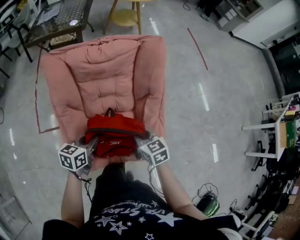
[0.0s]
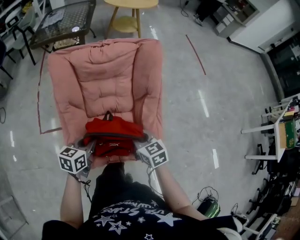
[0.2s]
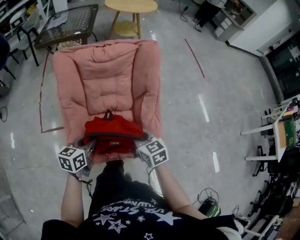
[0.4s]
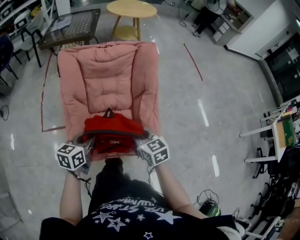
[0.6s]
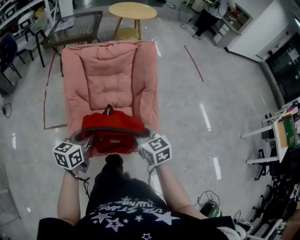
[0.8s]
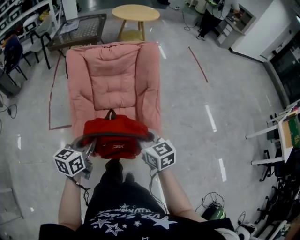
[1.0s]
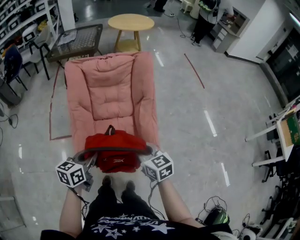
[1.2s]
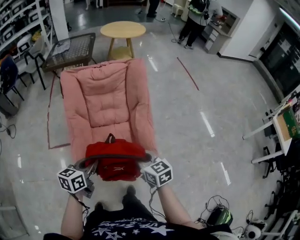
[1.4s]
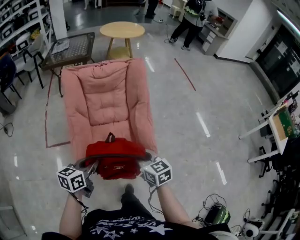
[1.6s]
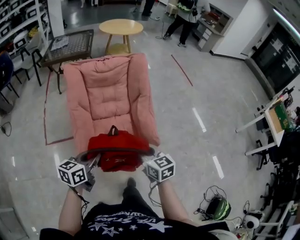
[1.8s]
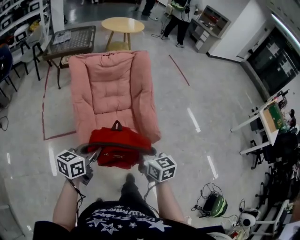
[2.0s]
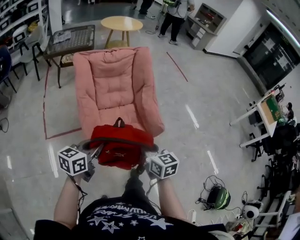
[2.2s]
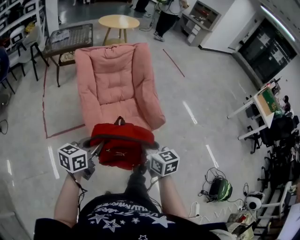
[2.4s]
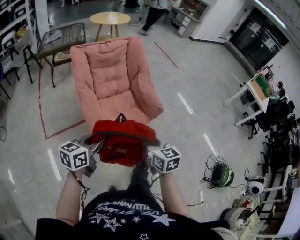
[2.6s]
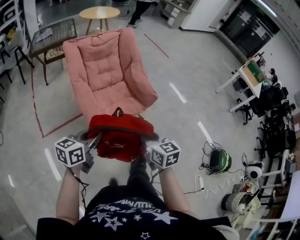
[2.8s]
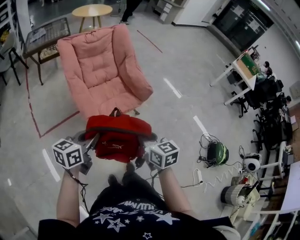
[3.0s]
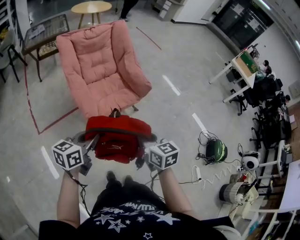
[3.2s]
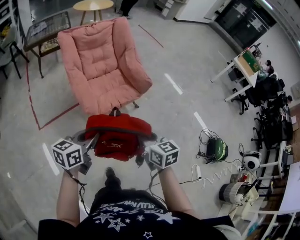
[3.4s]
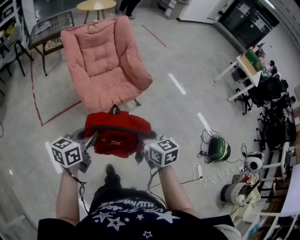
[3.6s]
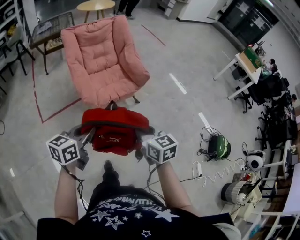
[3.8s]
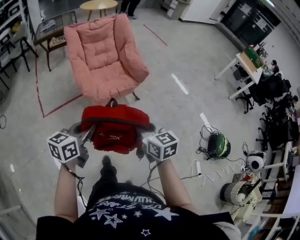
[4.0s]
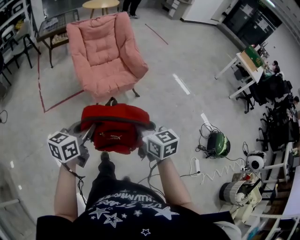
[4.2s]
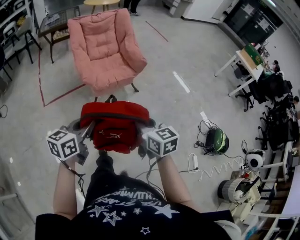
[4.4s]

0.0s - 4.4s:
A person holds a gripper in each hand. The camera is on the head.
0.0s - 1.4s: The grippers both shift backward and upward by approximately 30 cm.
1.4s - 3.0s: The right gripper ends up about 40 cm from where it was, and changes its angle by about 30 degrees; the left gripper shifts by some 35 cm, and turns by some 30 degrees.
3.0s - 4.4s: The two grippers go approximately 25 cm backward and to the right.

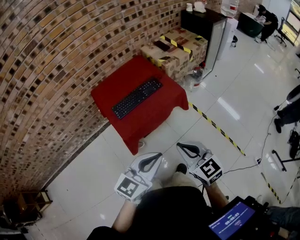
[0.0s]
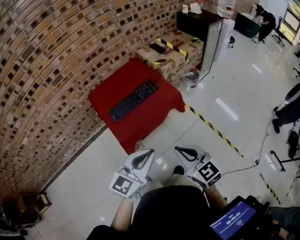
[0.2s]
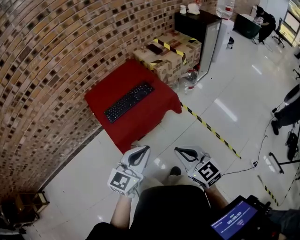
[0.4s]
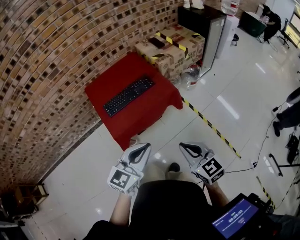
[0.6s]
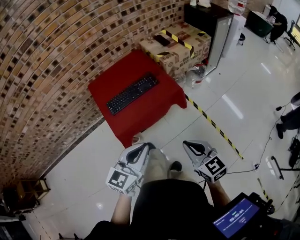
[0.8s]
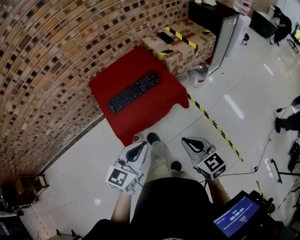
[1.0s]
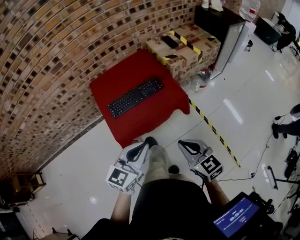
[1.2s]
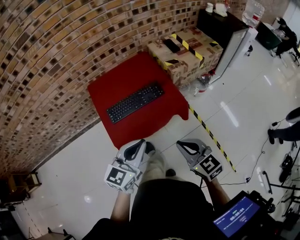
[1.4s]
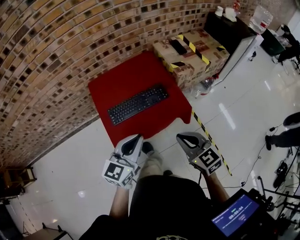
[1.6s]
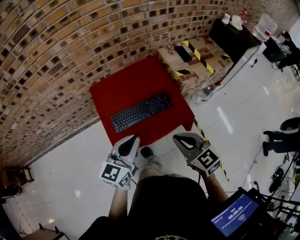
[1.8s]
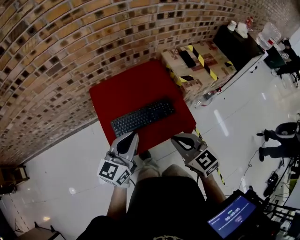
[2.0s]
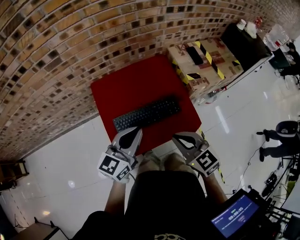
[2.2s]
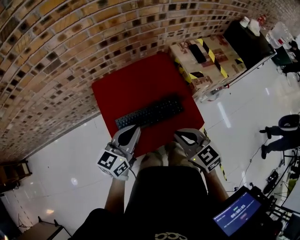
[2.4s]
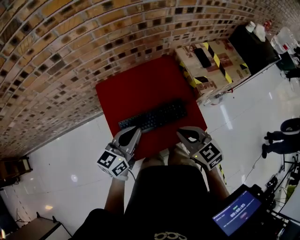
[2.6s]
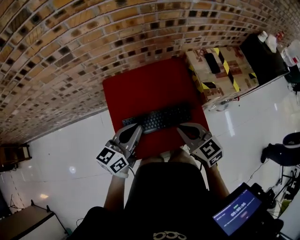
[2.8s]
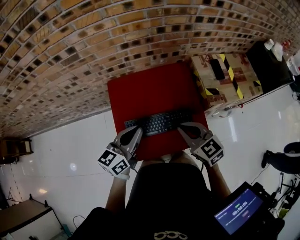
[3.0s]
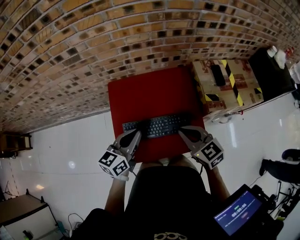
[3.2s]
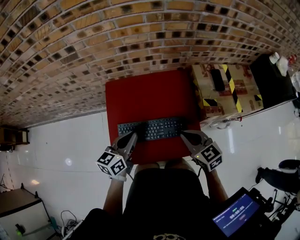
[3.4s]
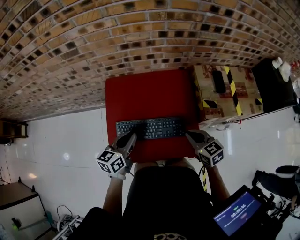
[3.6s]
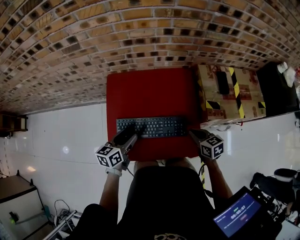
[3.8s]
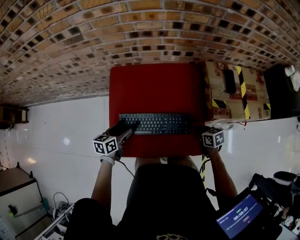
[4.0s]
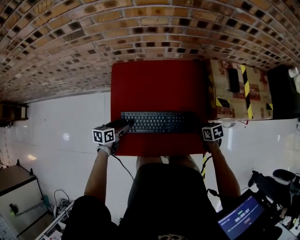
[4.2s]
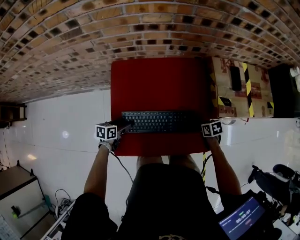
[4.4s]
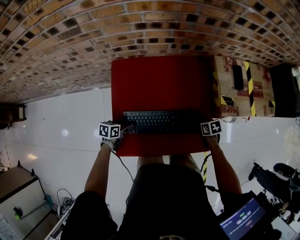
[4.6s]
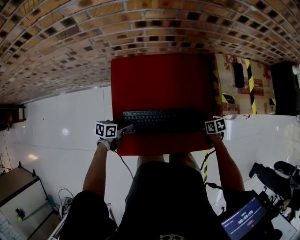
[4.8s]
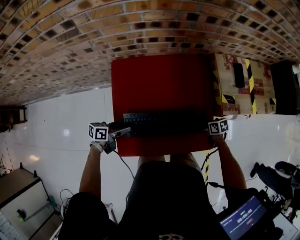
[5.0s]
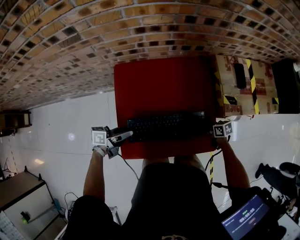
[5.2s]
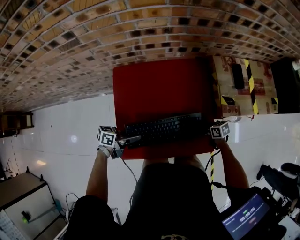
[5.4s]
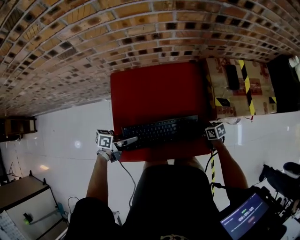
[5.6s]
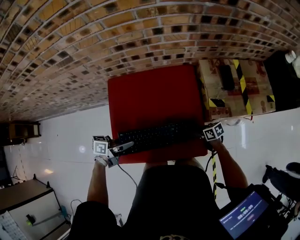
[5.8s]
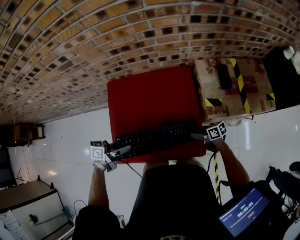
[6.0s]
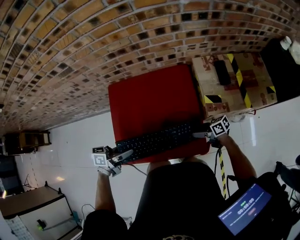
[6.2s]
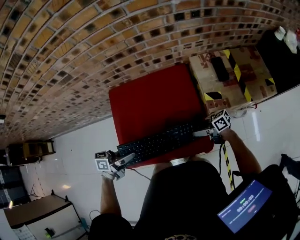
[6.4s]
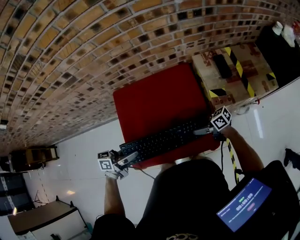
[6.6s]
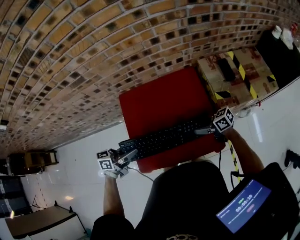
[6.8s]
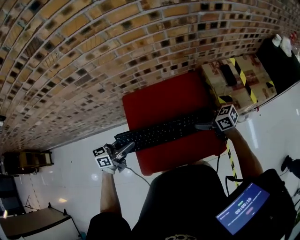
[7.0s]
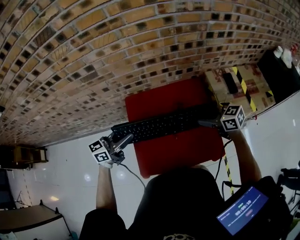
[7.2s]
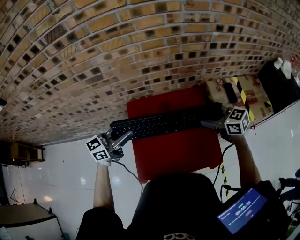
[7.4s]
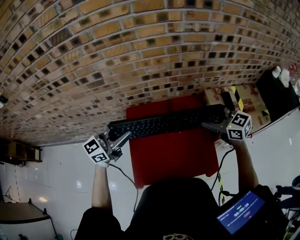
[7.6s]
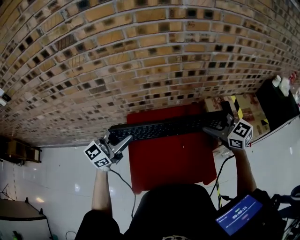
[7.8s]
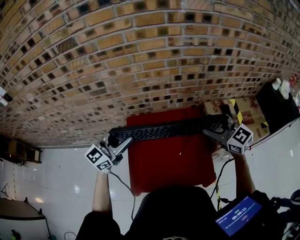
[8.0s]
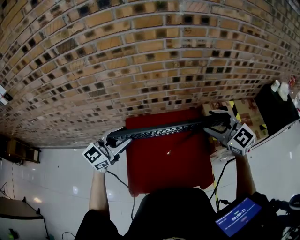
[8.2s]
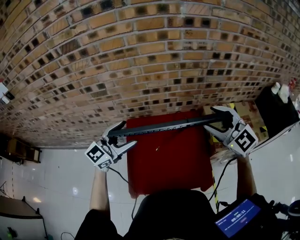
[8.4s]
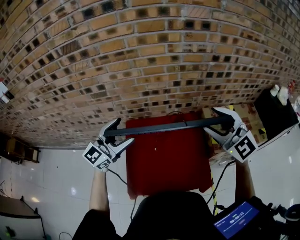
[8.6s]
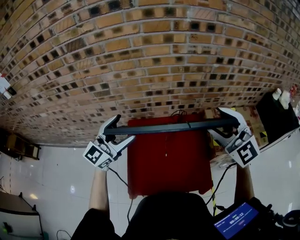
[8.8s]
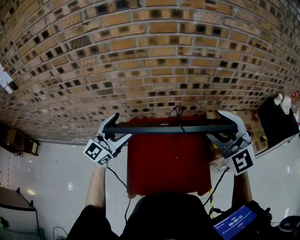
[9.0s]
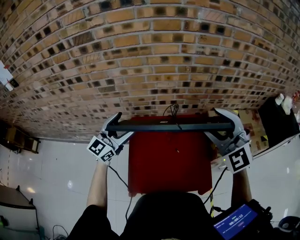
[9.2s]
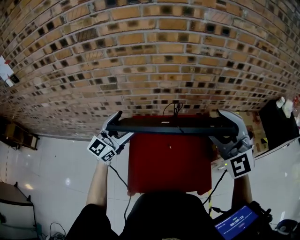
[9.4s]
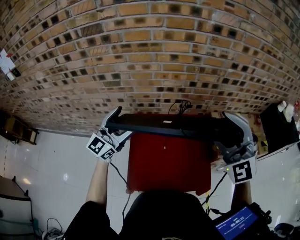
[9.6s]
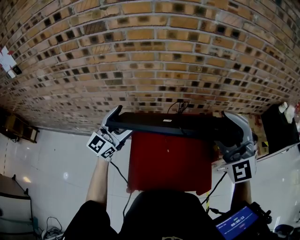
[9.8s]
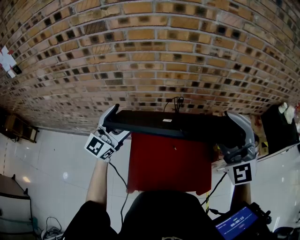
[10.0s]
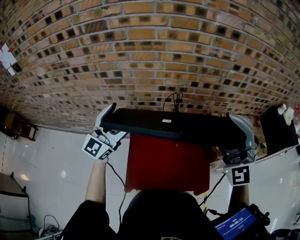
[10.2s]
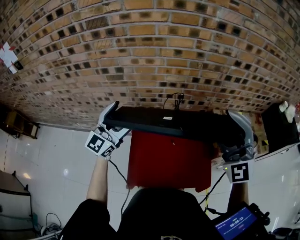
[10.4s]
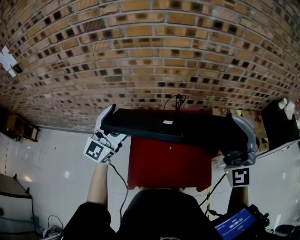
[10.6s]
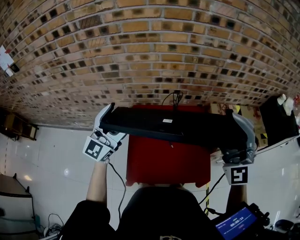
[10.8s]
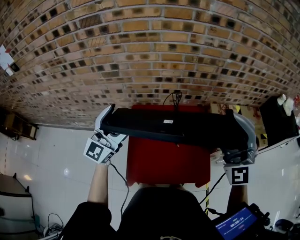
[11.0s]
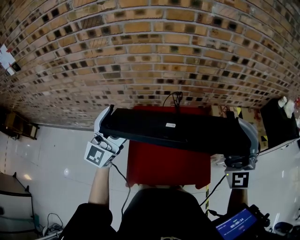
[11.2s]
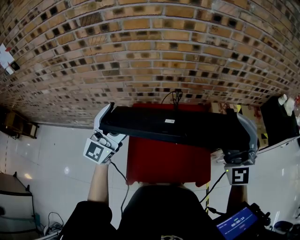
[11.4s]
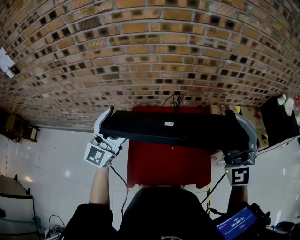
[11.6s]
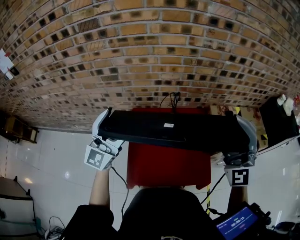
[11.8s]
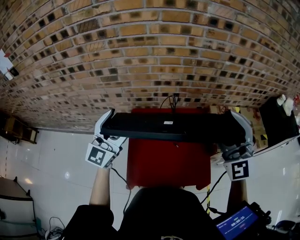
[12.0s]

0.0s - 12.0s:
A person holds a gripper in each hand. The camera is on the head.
0.0s - 1.6s: Both grippers move forward, some 20 cm. The left gripper changes its angle by about 20 degrees.
1.6s - 3.0s: The right gripper is displaced forward by about 25 cm, while the left gripper is displaced forward and to the left by roughly 25 cm, and rotates about 20 degrees.
3.0s - 4.4s: The left gripper travels downward by roughly 35 cm, tilts its fingers approximately 40 degrees downward, and opens its fingers. Meanwhile the right gripper goes about 35 cm downward and to the right, tilts its fingers roughly 40 degrees downward, and opens up.
4.4s - 6.0s: The left gripper goes approximately 20 cm upward, tilts its fingers some 30 degrees upward, and closes its fingers. The right gripper points its fingers roughly 30 degrees further upward.
6.0s - 7.6s: The right gripper travels upward by about 35 cm, and rolls counterclockwise, seen from behind, by roughly 50 degrees. The left gripper is displaced upward by about 20 cm, and twists some 60 degrees clockwise, seen from behind.
7.6s - 9.0s: The left gripper shifts roughly 10 cm upward, turns by some 30 degrees, and opens, while the right gripper travels upward by approximately 20 cm, and twists roughly 50 degrees counterclockwise, seen from behind.
9.0s - 10.4s: The right gripper changes place by roughly 5 cm.
10.4s - 12.0s: The grippers make only small movements.

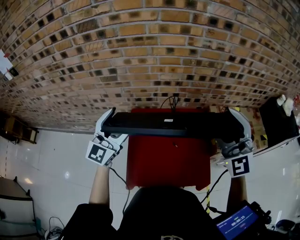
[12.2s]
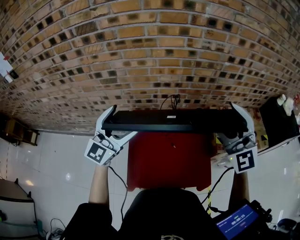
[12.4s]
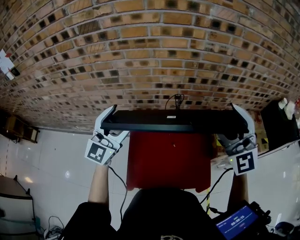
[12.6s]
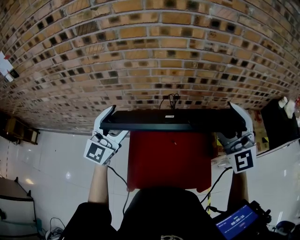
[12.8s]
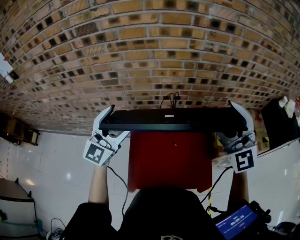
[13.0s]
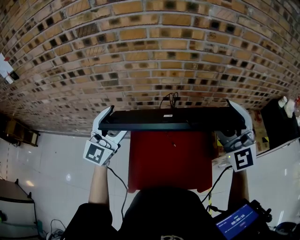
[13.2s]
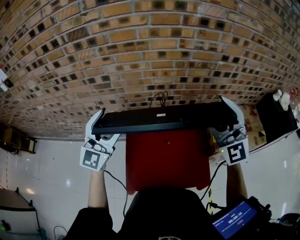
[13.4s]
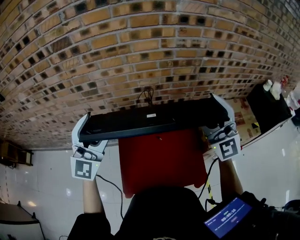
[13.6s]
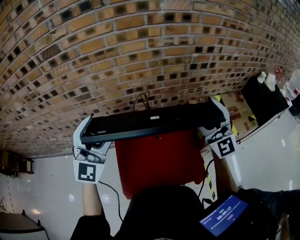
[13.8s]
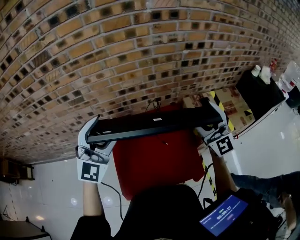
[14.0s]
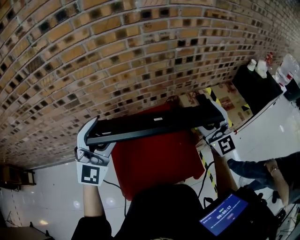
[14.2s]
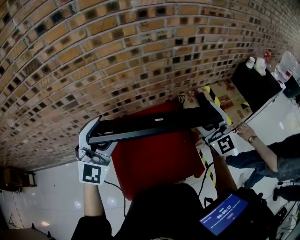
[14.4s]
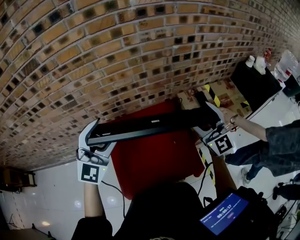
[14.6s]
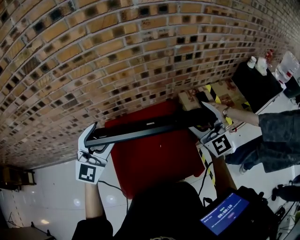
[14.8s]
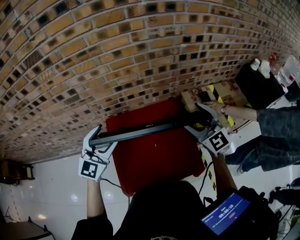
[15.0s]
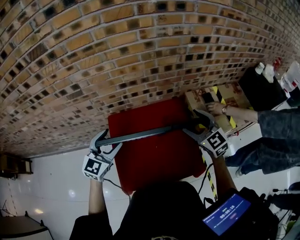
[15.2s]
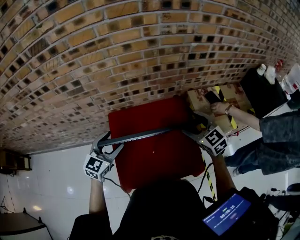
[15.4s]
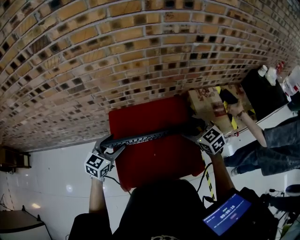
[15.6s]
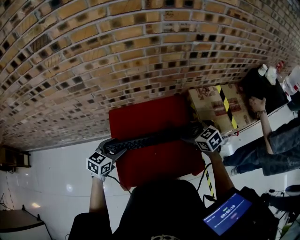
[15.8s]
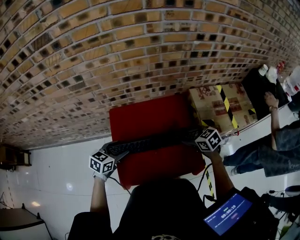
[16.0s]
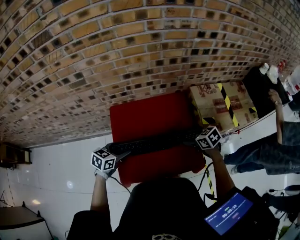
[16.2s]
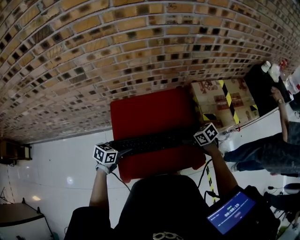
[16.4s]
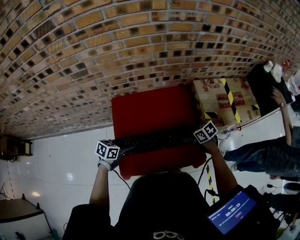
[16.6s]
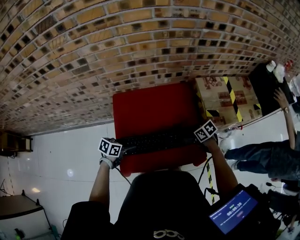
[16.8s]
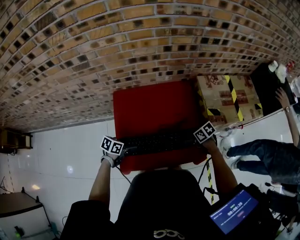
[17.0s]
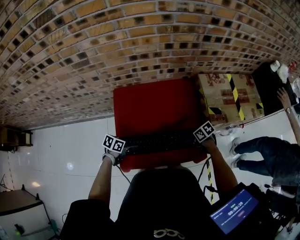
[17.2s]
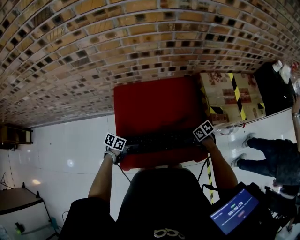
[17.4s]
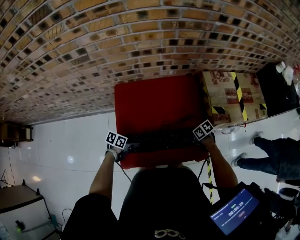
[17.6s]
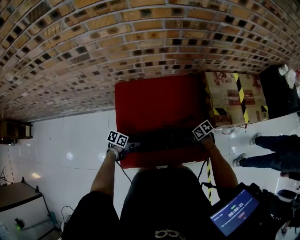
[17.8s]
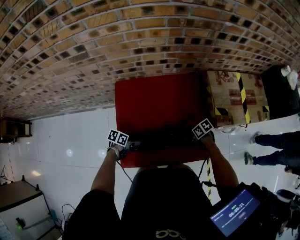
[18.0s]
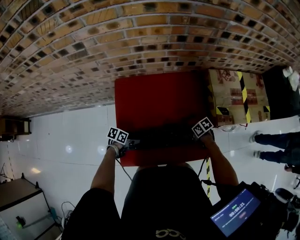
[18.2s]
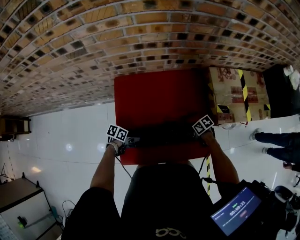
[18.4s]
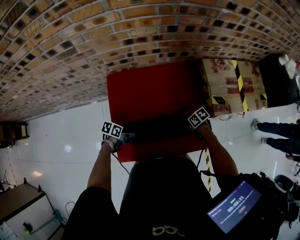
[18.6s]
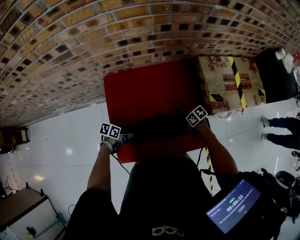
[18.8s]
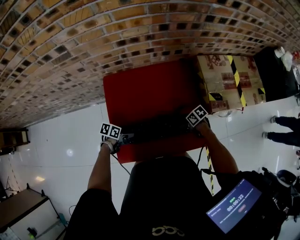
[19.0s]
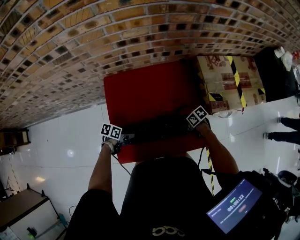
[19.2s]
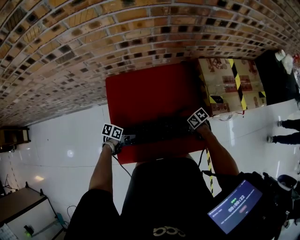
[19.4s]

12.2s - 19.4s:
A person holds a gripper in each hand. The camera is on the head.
12.2s - 13.6s: The left gripper shifts approximately 5 cm upward.
13.6s - 15.0s: The grippers both shift downward and to the right by some 15 cm. The left gripper turns by about 20 degrees; the right gripper changes its angle by approximately 30 degrees.
15.0s - 16.6s: The grippers both shift downward by some 30 cm. The right gripper angles its fingers downward, by approximately 40 degrees; the left gripper tilts its fingers about 30 degrees downward.
16.6s - 18.0s: The two grippers go roughly 15 cm downward. The left gripper rotates about 30 degrees. The right gripper rotates about 20 degrees.
18.0s - 19.4s: There are only small adjustments of the grippers.
